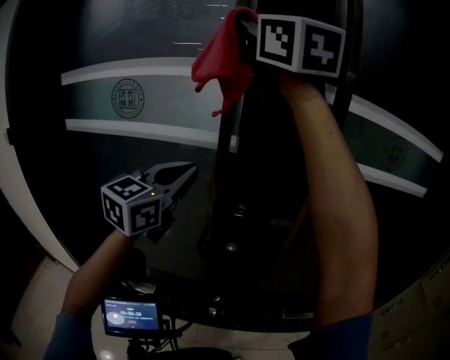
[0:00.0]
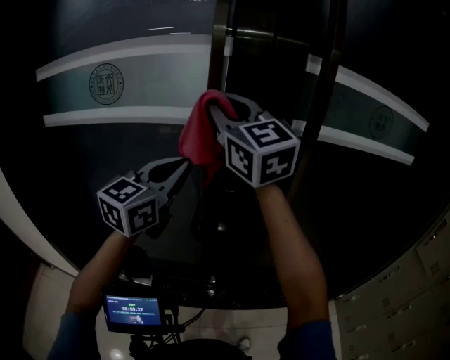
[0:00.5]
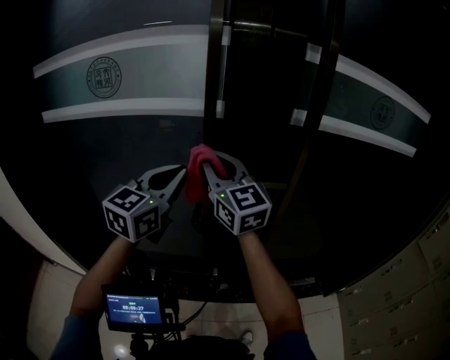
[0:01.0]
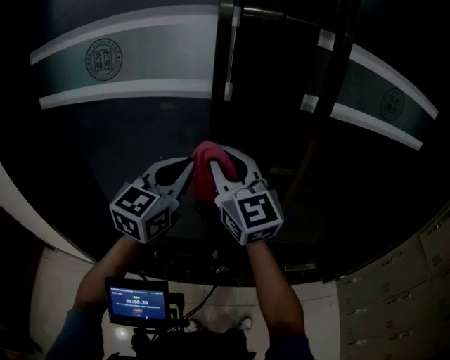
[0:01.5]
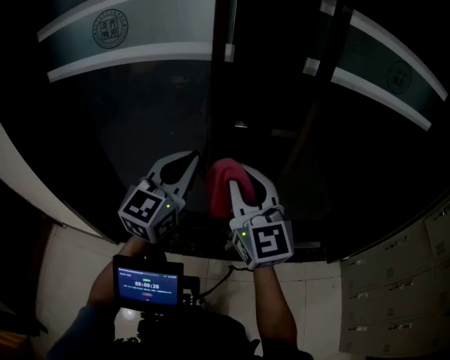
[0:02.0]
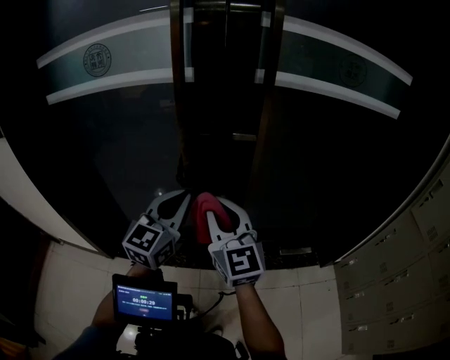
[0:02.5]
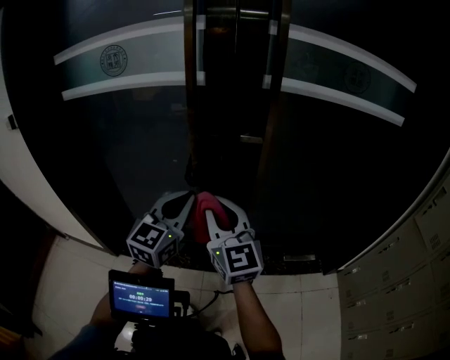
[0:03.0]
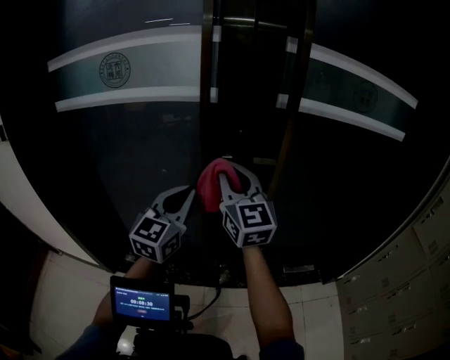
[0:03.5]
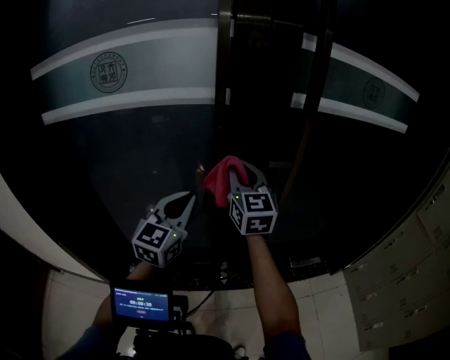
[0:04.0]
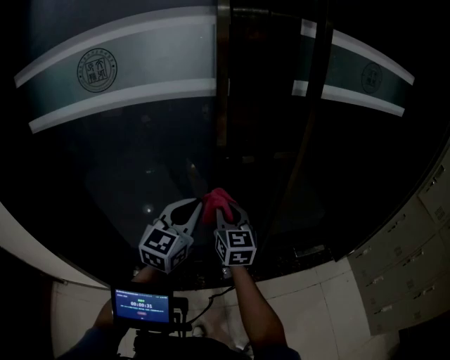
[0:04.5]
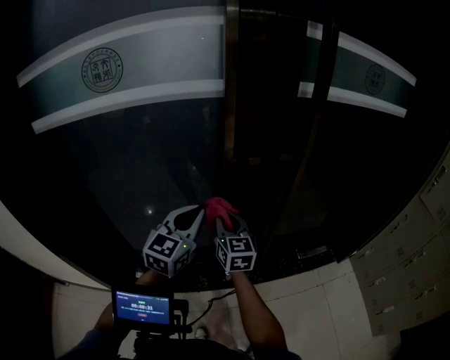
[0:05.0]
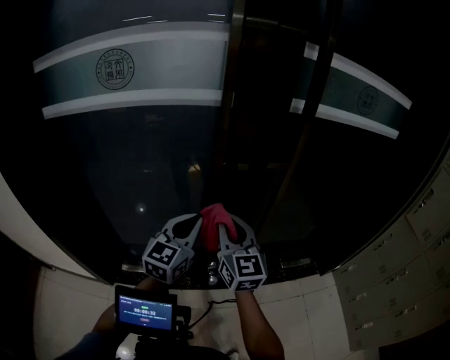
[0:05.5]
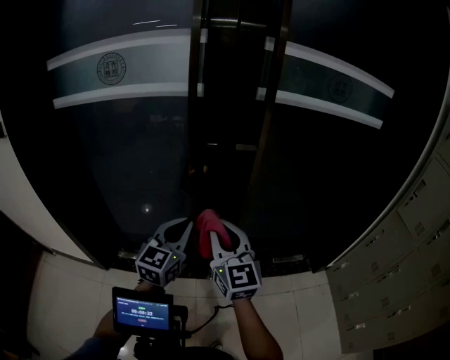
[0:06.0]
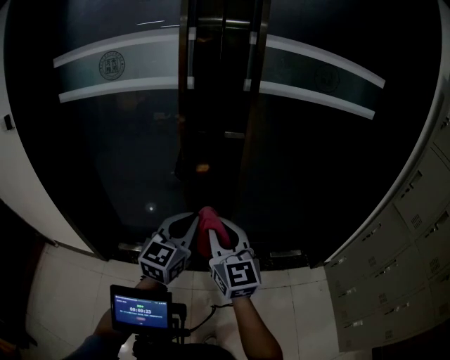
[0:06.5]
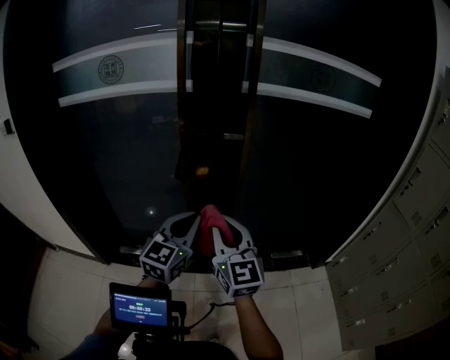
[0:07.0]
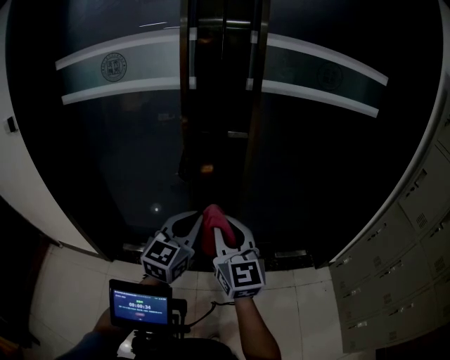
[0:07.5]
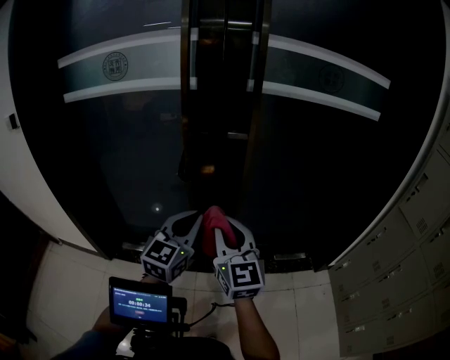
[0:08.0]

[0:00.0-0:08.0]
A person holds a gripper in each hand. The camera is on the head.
0:00.0 to 0:02.0: The left gripper is displaced downward and backward by some 15 cm. Meanwhile the right gripper goes about 40 cm downward.
0:02.0 to 0:04.0: The left gripper moves about 10 cm backward and comes back. The right gripper is displaced forward by some 15 cm.
0:04.0 to 0:06.0: The right gripper goes some 25 cm backward, while the left gripper goes roughly 20 cm backward and to the right.
0:06.0 to 0:08.0: The grippers both shift to the right and backward by roughly 10 cm.

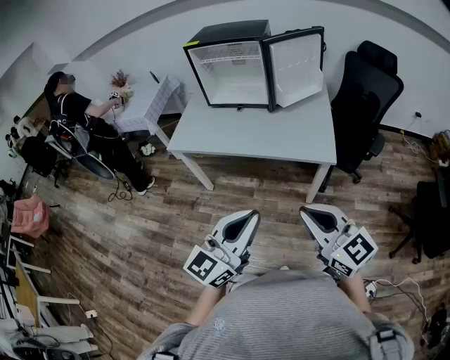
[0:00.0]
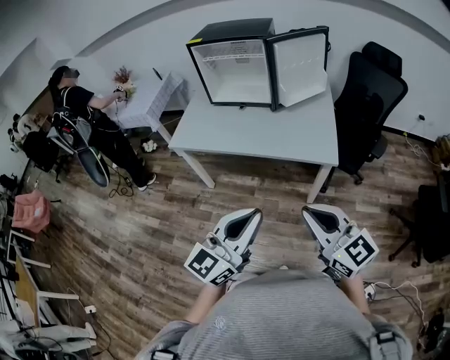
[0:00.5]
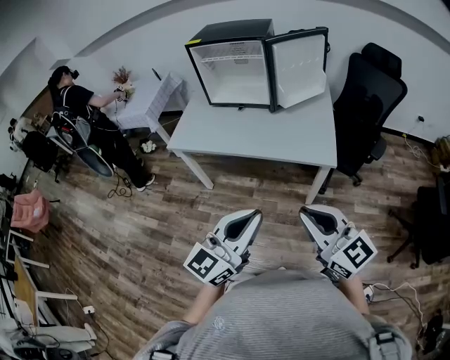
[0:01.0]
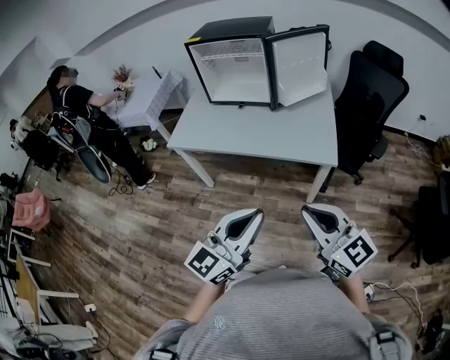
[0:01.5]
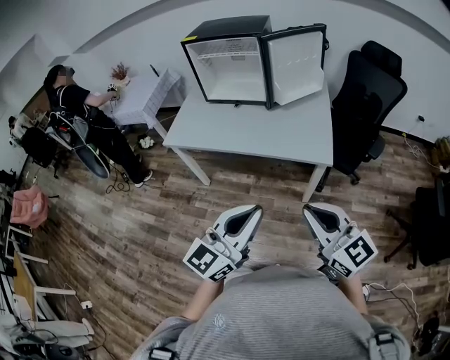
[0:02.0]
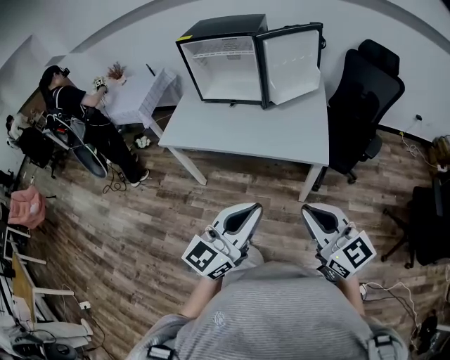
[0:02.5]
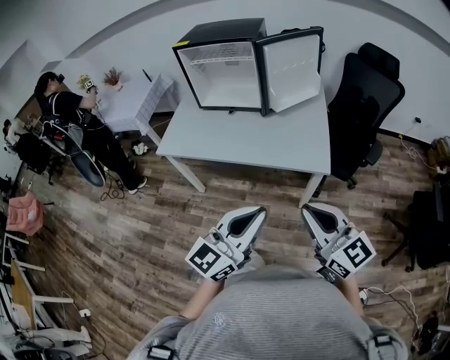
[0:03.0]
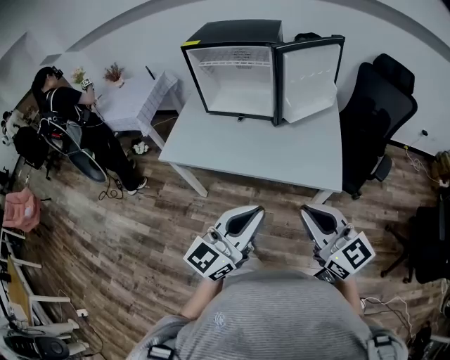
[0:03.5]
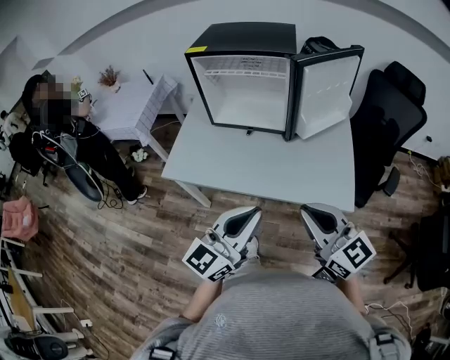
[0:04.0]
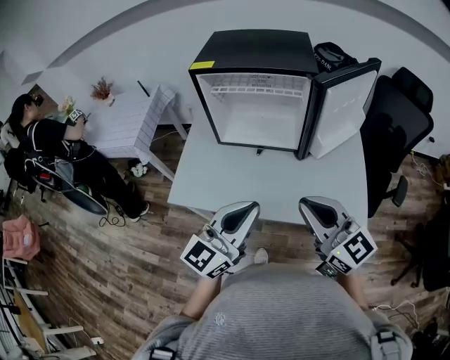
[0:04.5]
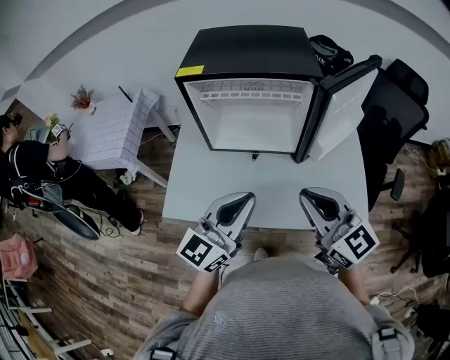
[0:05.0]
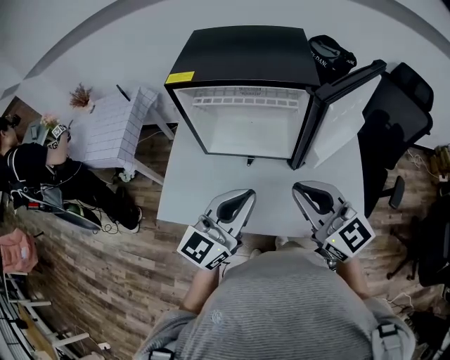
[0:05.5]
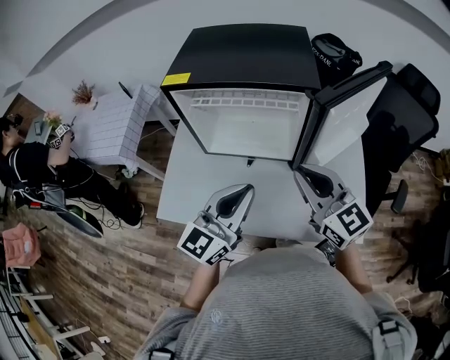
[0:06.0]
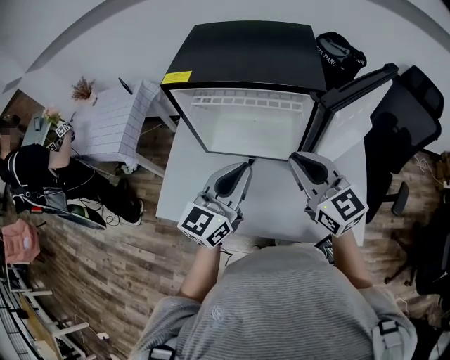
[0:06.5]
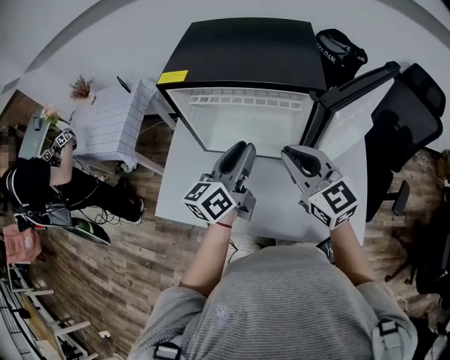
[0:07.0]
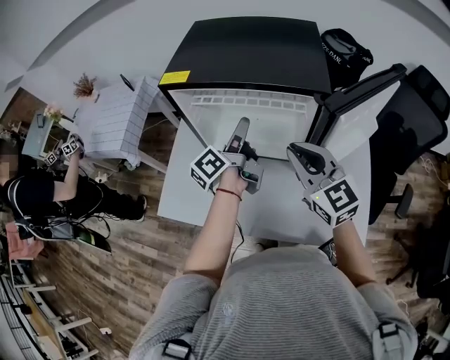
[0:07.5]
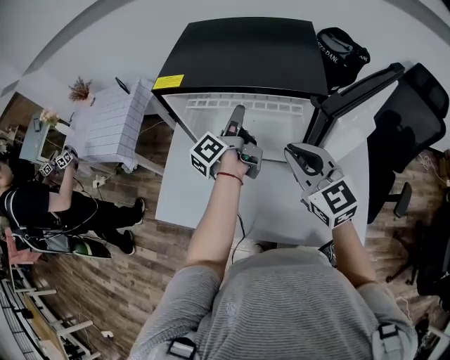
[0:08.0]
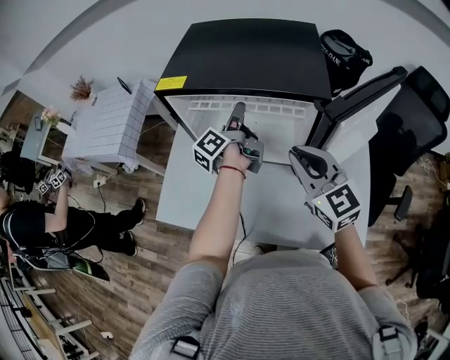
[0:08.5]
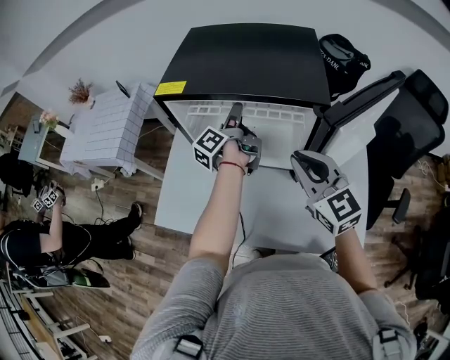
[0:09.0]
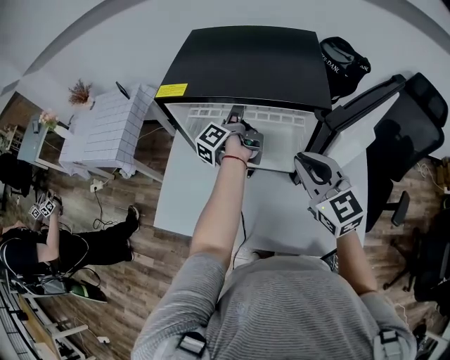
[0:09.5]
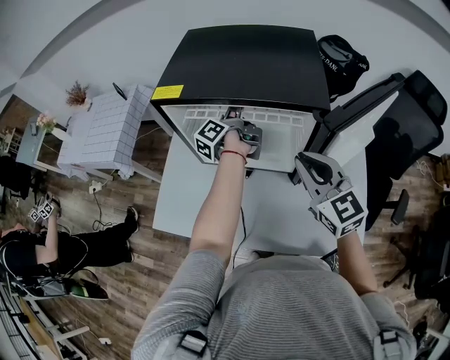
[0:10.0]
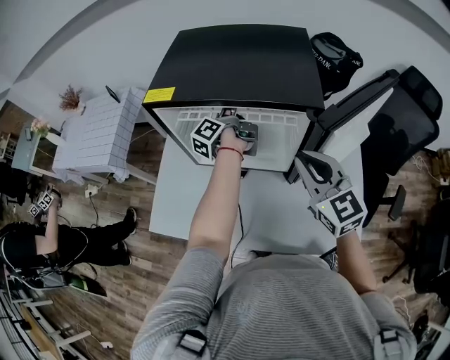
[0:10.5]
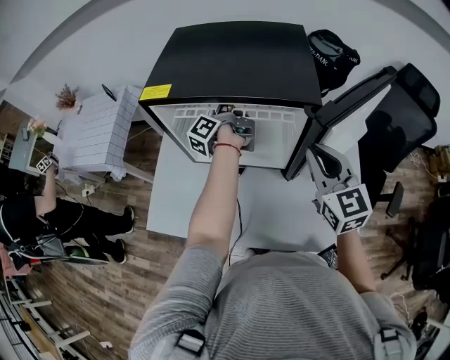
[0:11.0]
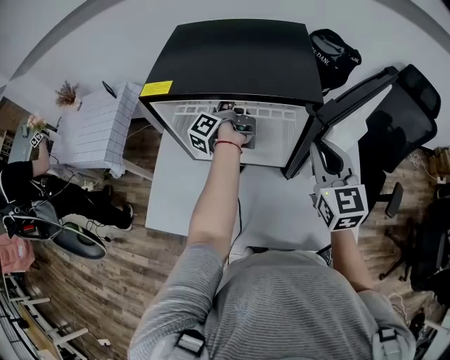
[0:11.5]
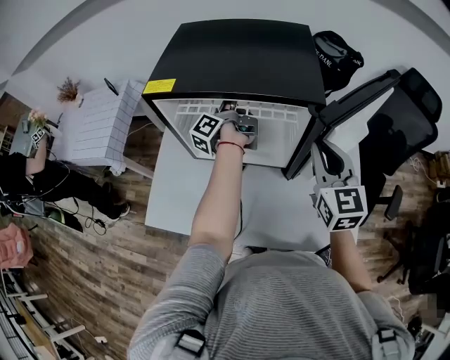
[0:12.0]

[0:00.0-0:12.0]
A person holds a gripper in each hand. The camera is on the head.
0:00.0 to 0:02.0: The grippers move only a little.
0:02.0 to 0:04.0: The grippers both shift forward and to the left by some 25 cm.
0:04.0 to 0:06.0: Both grippers move forward, some 30 cm.
0:06.0 to 0:08.0: The right gripper travels forward by approximately 10 cm. Meanwhile the left gripper is displaced forward by some 25 cm, twists about 70 degrees counterclockwise, seen from behind, and opens up.
0:08.0 to 0:10.0: The left gripper travels forward by about 10 cm.
0:10.0 to 0:12.0: The left gripper closes up, while the right gripper moves to the right, about 5 cm, and rotates roughly 20 degrees.

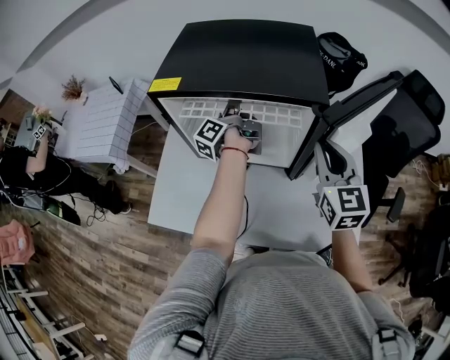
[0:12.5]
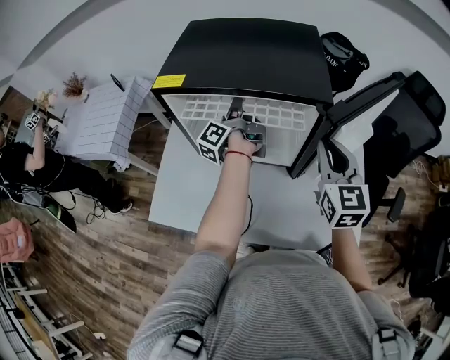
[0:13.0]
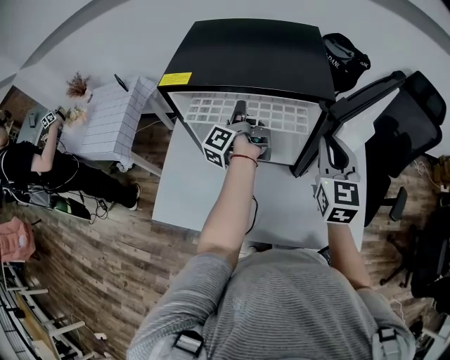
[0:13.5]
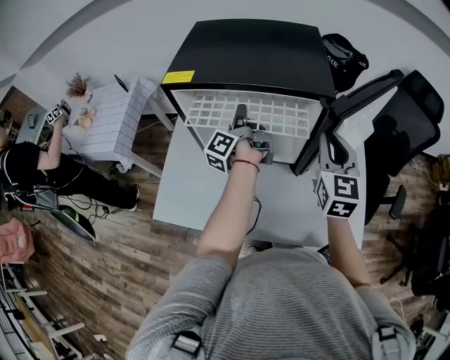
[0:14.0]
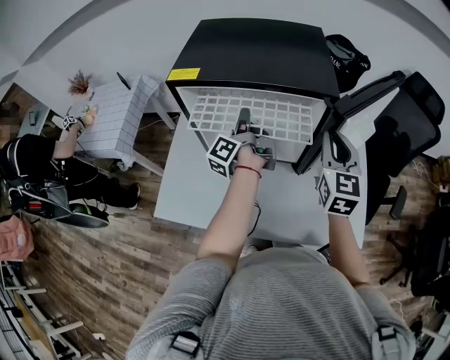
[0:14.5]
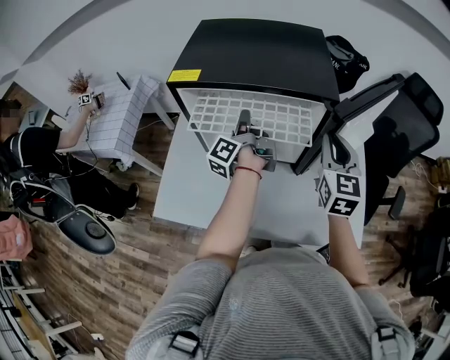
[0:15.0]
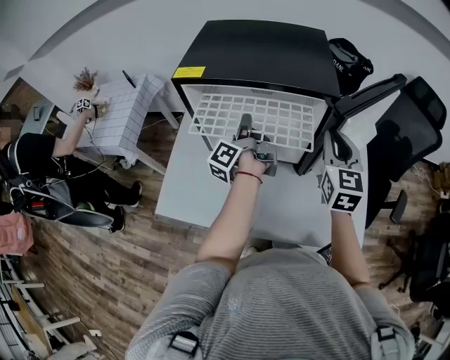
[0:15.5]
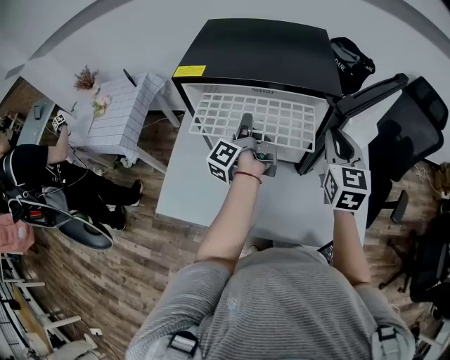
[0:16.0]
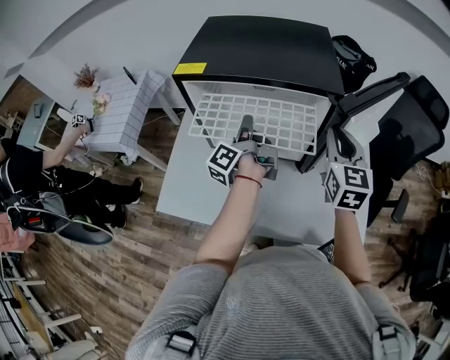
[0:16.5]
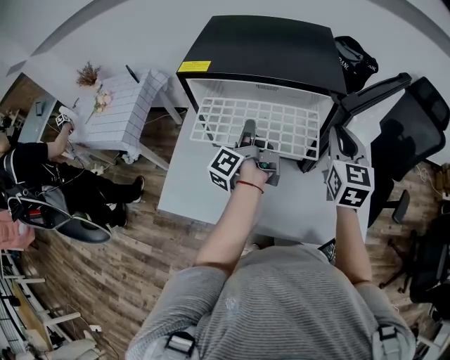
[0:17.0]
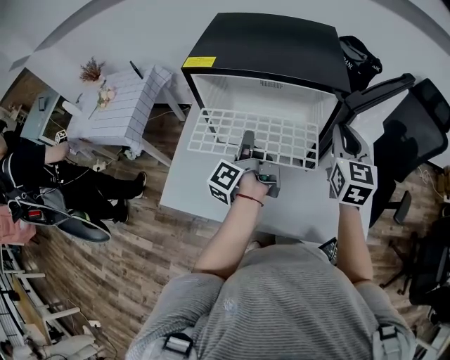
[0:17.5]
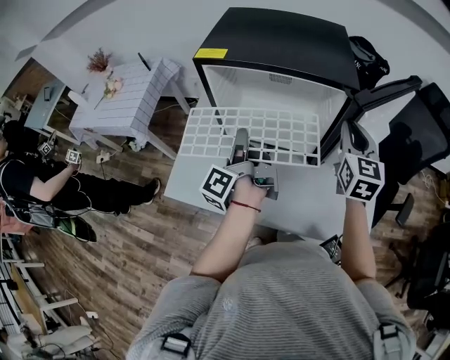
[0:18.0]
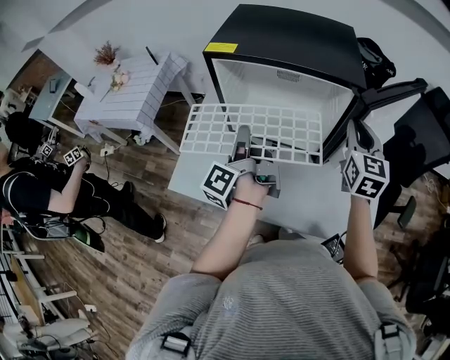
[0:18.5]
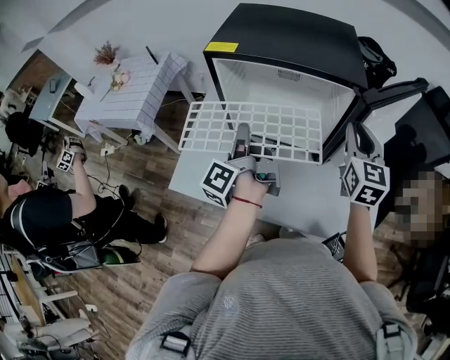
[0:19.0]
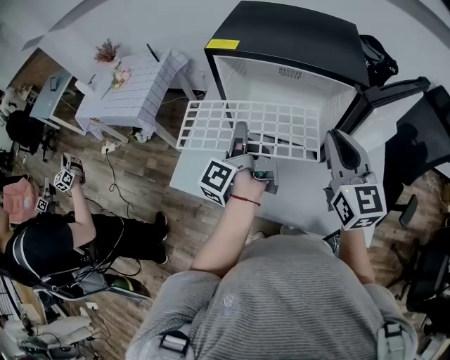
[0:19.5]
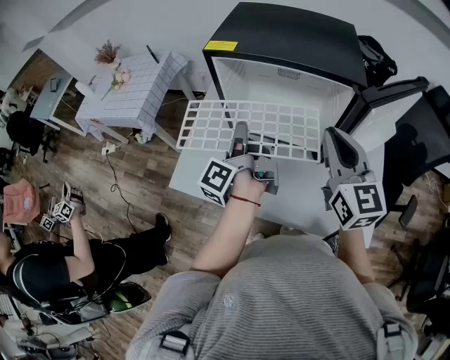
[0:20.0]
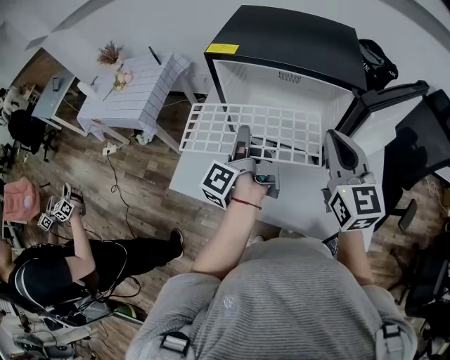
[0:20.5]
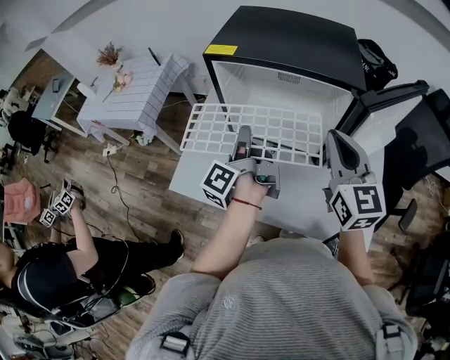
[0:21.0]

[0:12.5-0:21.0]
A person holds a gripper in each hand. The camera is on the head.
0:12.5 to 0:14.5: The left gripper goes some 10 cm backward.
0:14.5 to 0:16.5: The grippers make only small movements.
0:16.5 to 0:19.0: The left gripper travels backward and to the left by some 15 cm.
0:19.0 to 0:21.0: The right gripper is displaced to the left by approximately 10 cm.
